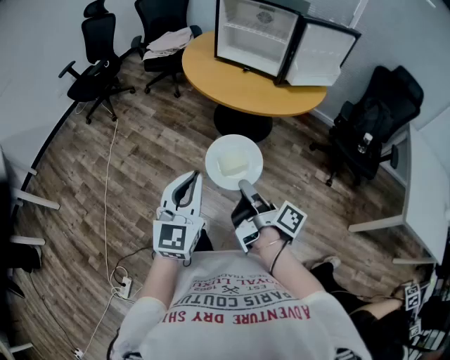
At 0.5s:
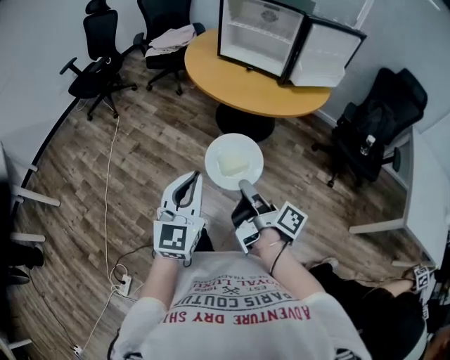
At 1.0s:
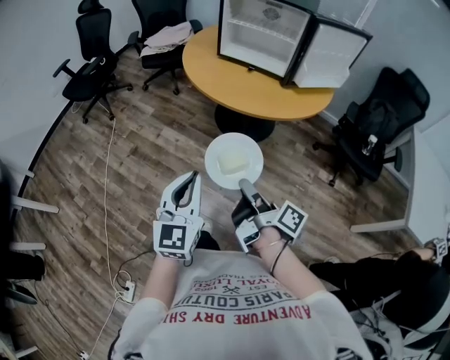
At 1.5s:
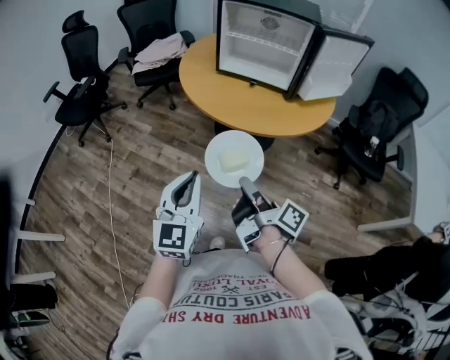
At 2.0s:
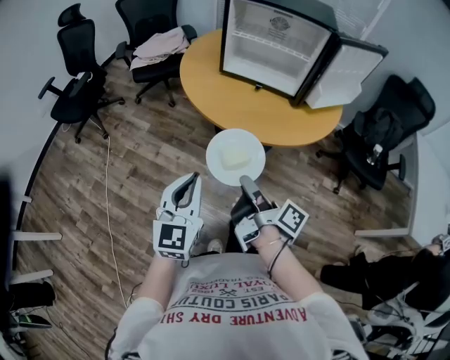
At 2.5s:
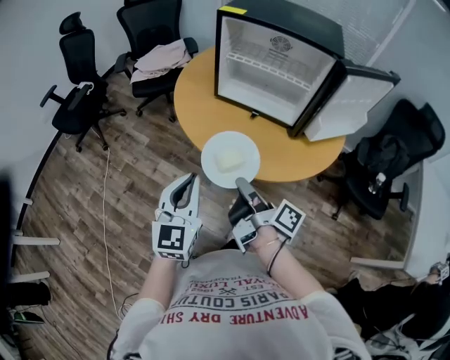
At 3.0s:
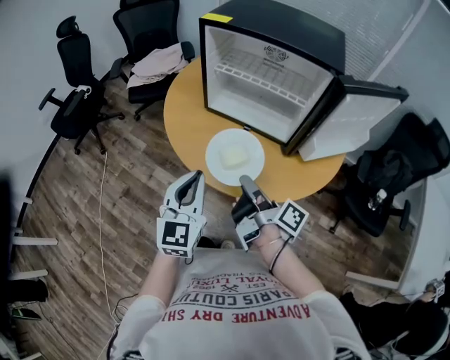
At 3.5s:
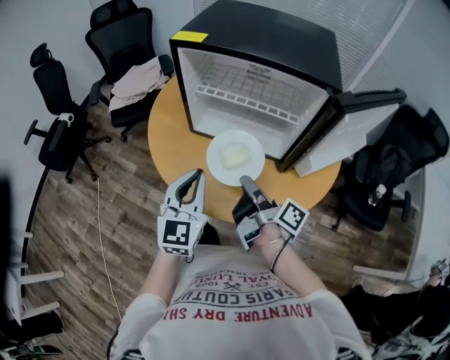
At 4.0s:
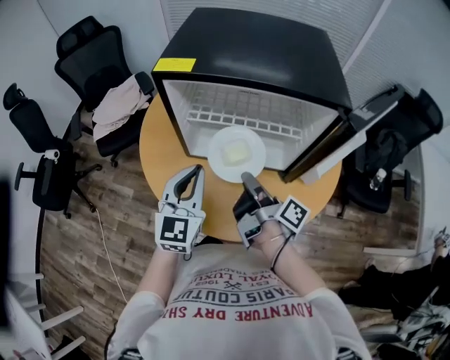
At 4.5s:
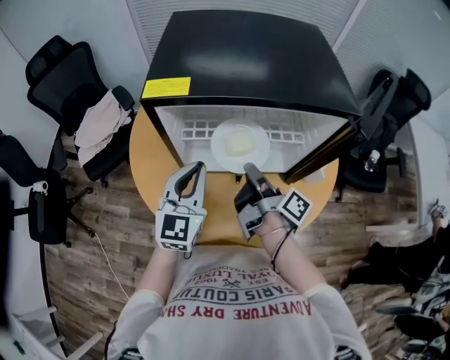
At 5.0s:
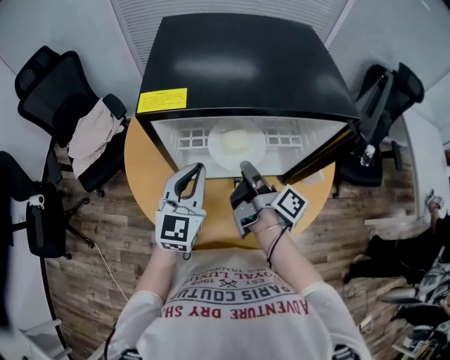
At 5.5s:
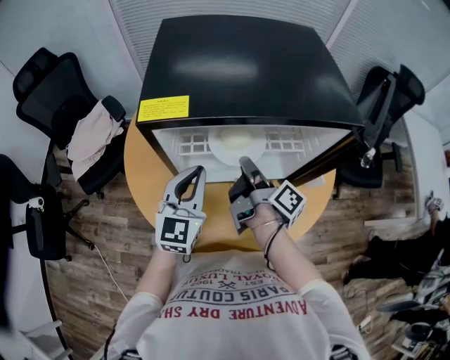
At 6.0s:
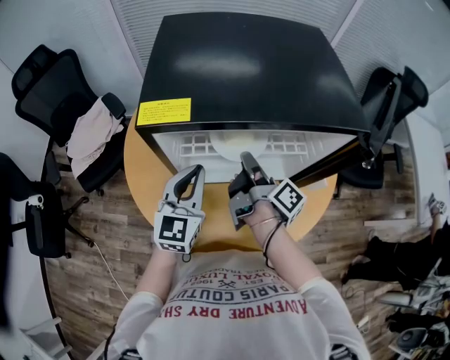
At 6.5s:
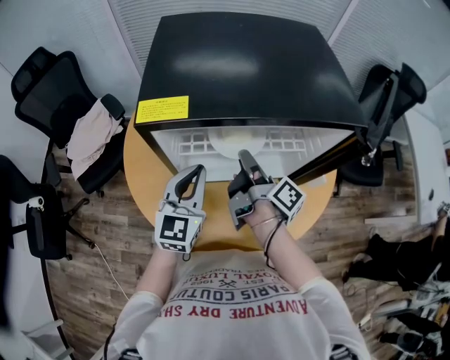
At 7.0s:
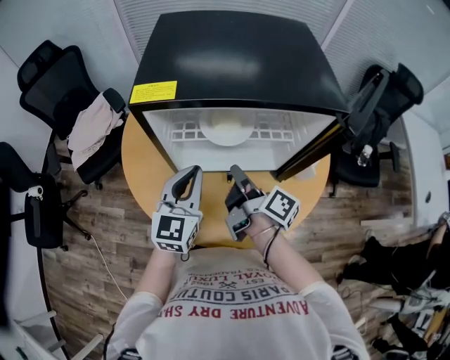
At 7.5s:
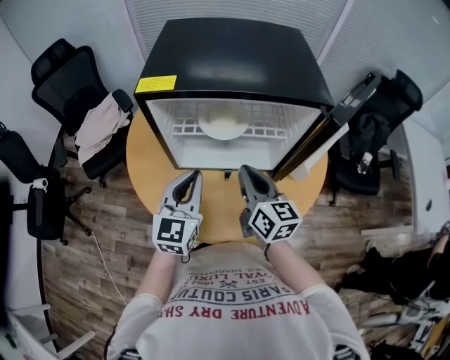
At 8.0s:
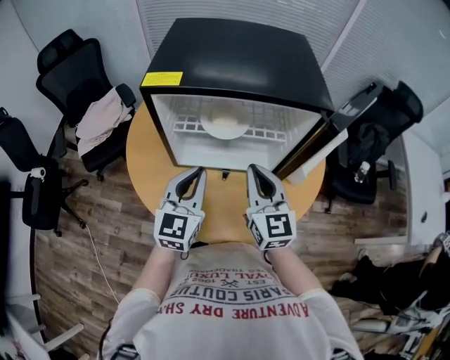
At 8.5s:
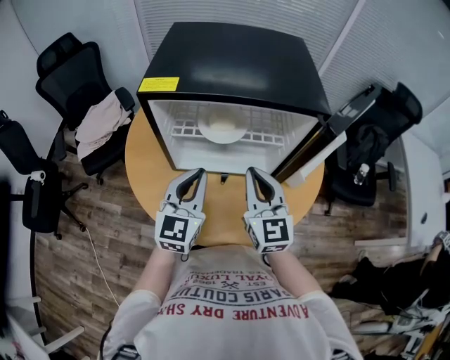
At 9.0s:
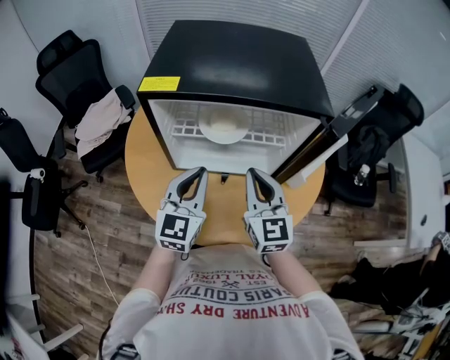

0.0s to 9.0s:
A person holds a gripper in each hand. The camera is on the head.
0.0s to 2.0s: The left gripper changes place by approximately 25 cm.
2.0s to 4.5s: The left gripper moves roughly 50 cm, and swivels some 20 degrees.
7.0s to 9.0s: The left gripper ends up about 5 cm from where it was.

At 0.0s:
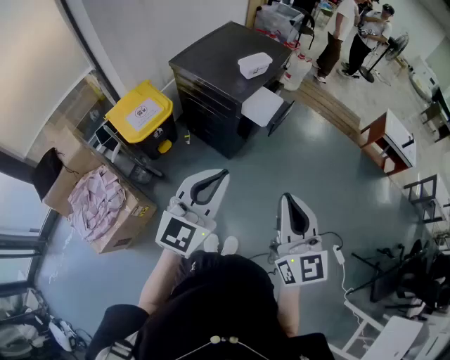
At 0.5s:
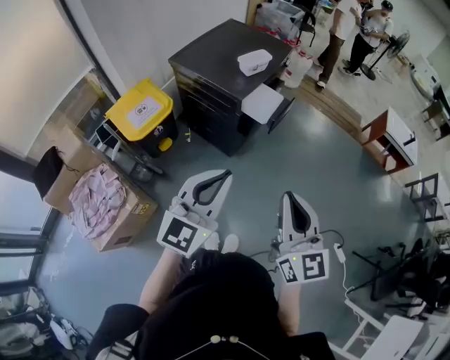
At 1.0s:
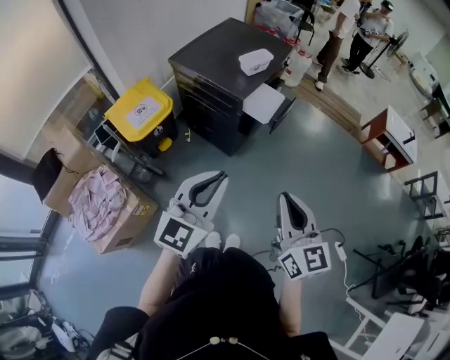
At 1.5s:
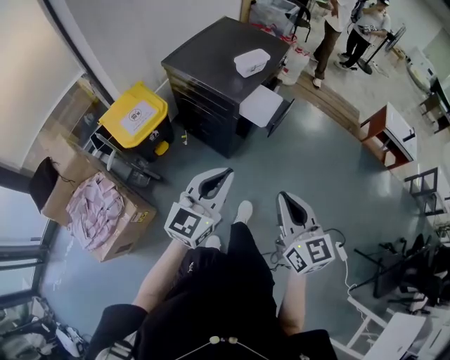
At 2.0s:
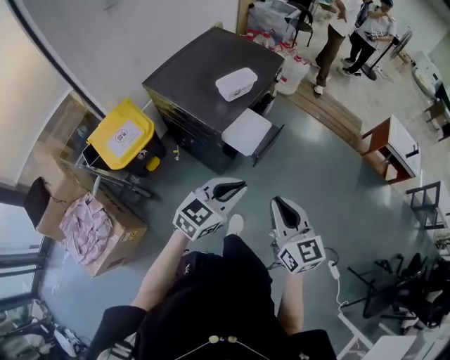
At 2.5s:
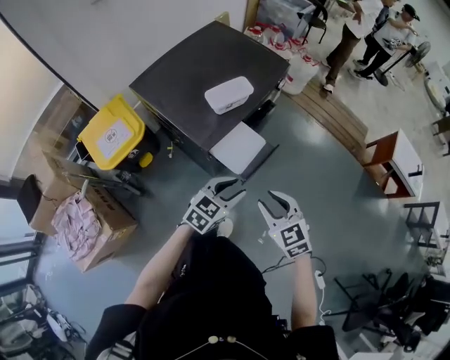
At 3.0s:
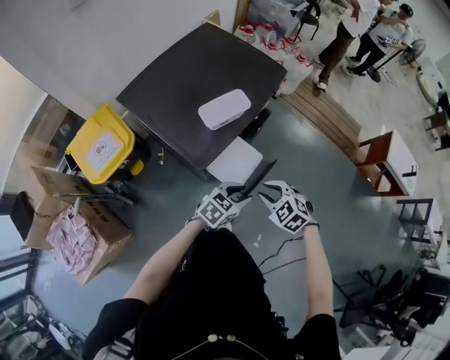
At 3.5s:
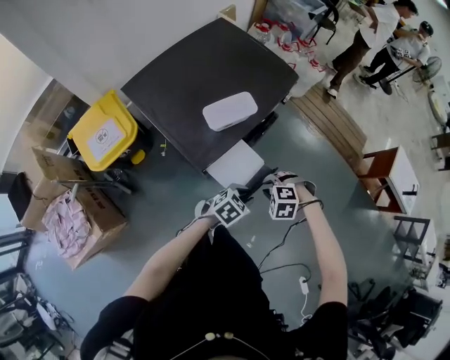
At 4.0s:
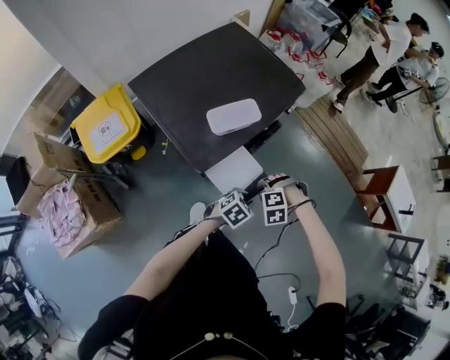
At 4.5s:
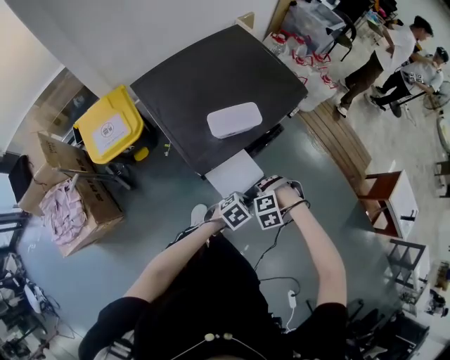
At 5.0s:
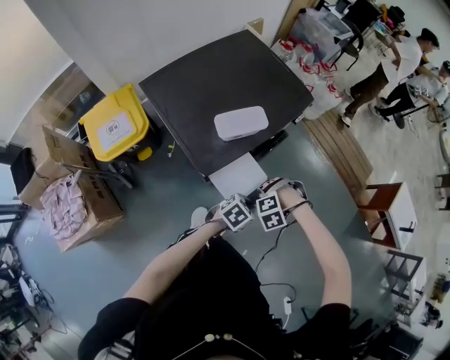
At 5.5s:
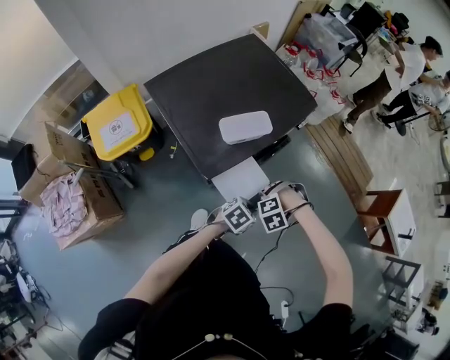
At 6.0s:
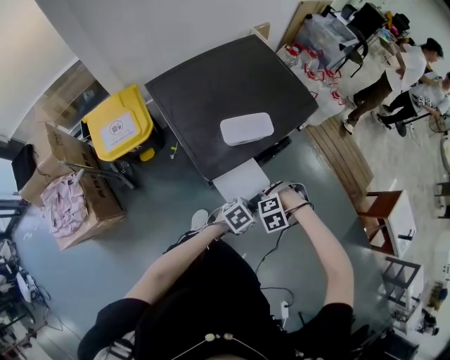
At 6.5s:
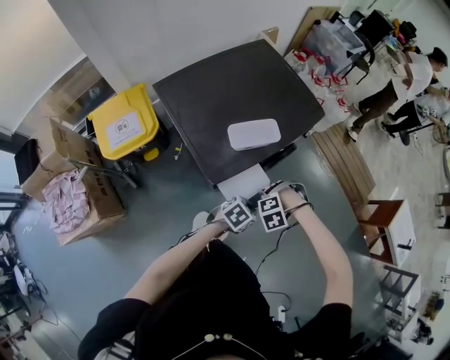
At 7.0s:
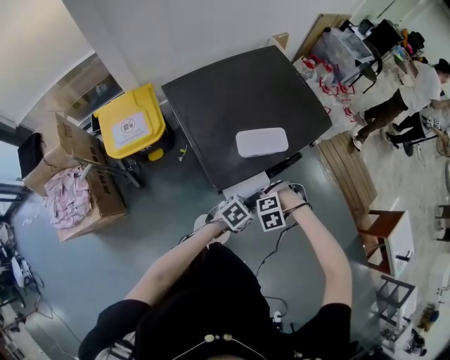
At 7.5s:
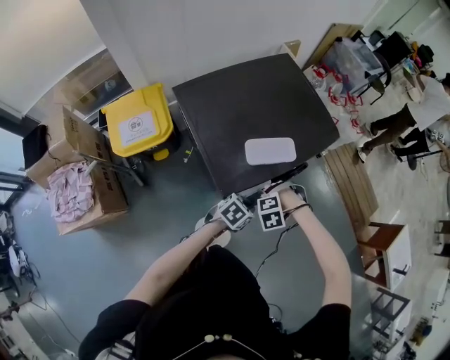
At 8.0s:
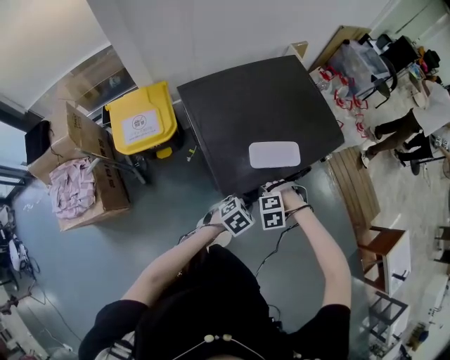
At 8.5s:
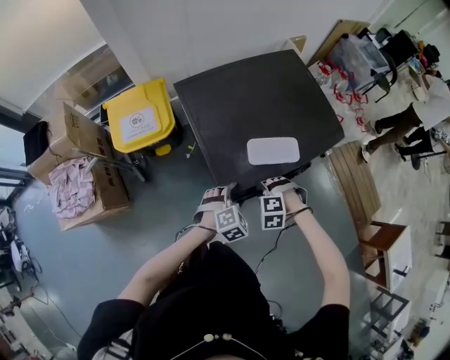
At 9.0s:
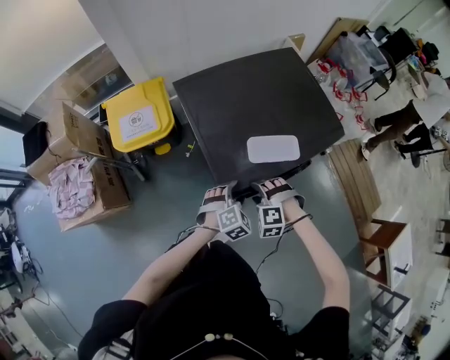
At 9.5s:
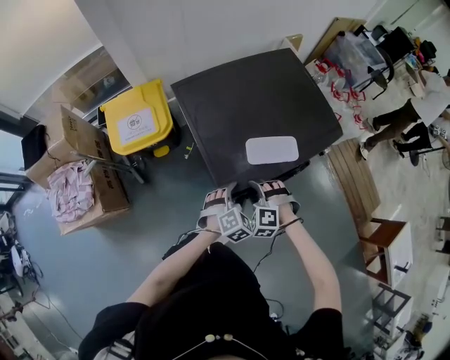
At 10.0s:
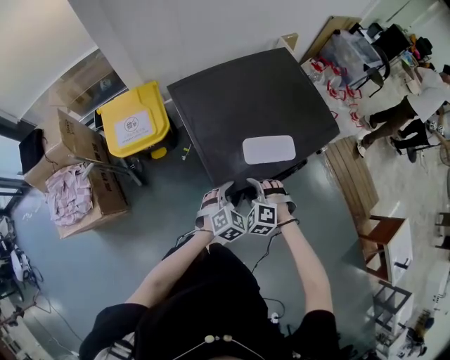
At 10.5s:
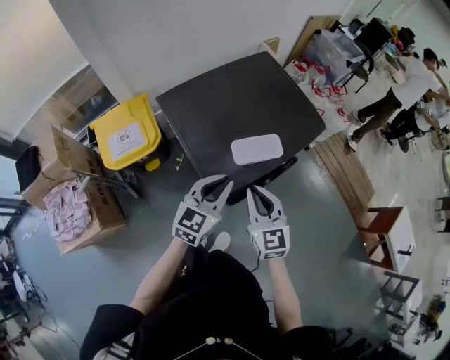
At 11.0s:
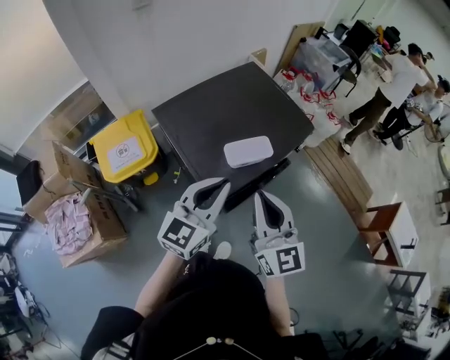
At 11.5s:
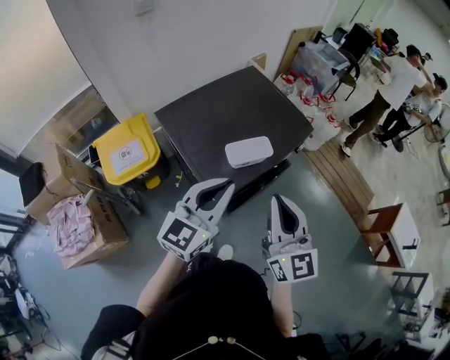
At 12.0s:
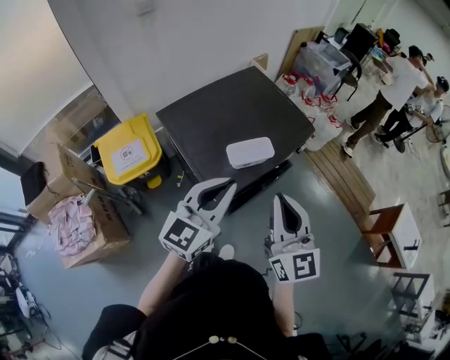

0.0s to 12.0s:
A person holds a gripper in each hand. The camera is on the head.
0.0s to 2.0s: The left gripper travels forward, downward and to the right by approximately 25 cm, and rotates approximately 30 degrees; the right gripper shifts about 25 cm forward and downward.
2.0s to 4.0s: The left gripper goes some 25 cm downward, and tilts its fingers some 40 degrees downward. The right gripper ends up approximately 35 cm from where it was, and points its fingers about 70 degrees further downward.
4.0s to 6.0s: The right gripper swivels roughly 20 degrees.
6.0s to 8.0s: The left gripper ends up about 15 cm from where it was, while the right gripper shifts by about 15 cm.
8.0s to 10.0s: The right gripper ends up roughly 5 cm from where it was, angles its fingers upward, by some 30 degrees, and opens up; the left gripper ends up roughly 5 cm from where it was, turns by some 30 degrees, and opens its fingers.
10.0s to 12.0s: The two grippers go some 30 cm upward. The right gripper angles its fingers upward, by some 60 degrees, and closes up, while the left gripper tips its fingers upward by roughly 40 degrees, and closes its fingers.

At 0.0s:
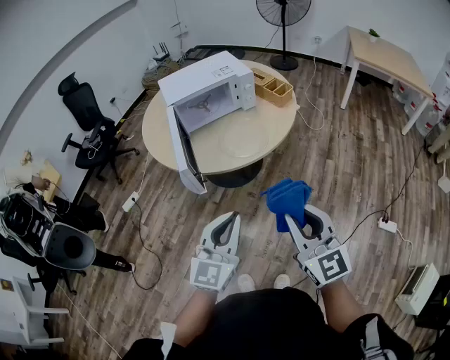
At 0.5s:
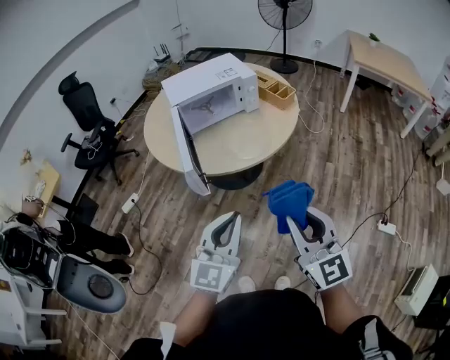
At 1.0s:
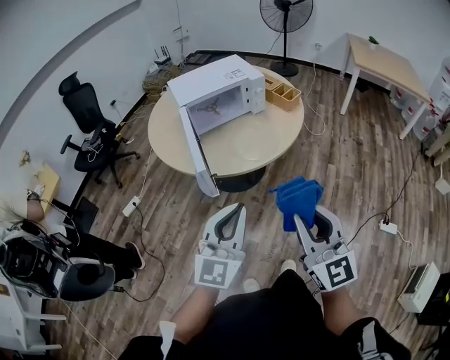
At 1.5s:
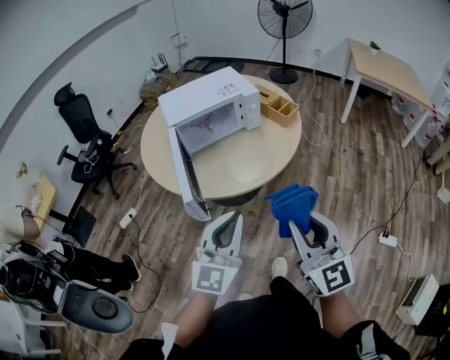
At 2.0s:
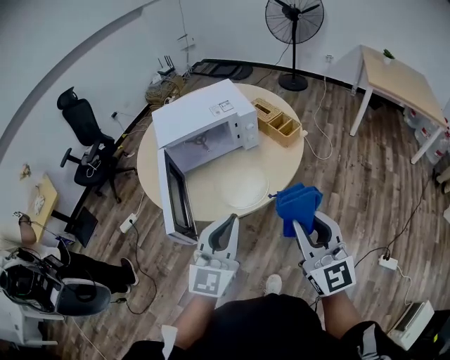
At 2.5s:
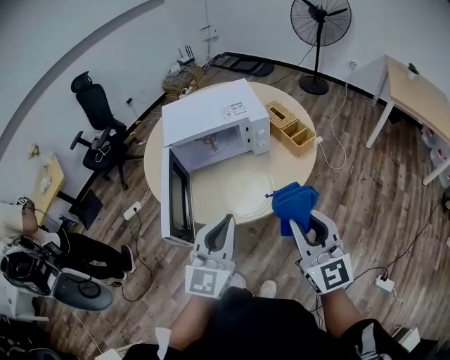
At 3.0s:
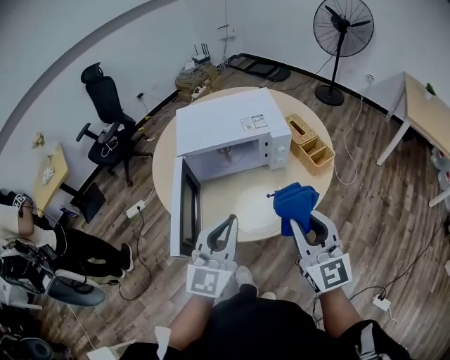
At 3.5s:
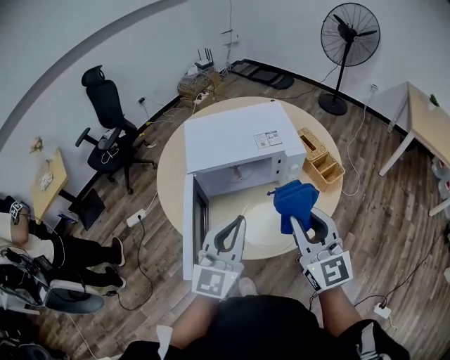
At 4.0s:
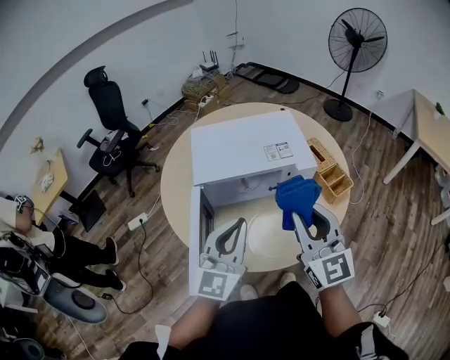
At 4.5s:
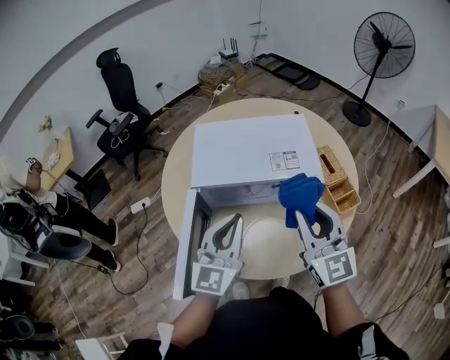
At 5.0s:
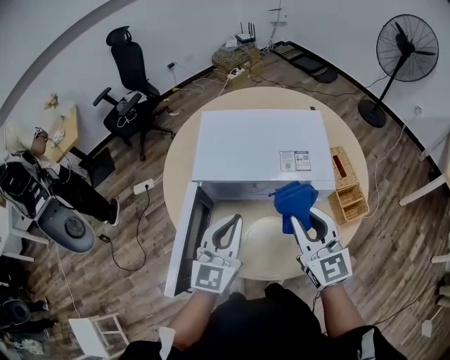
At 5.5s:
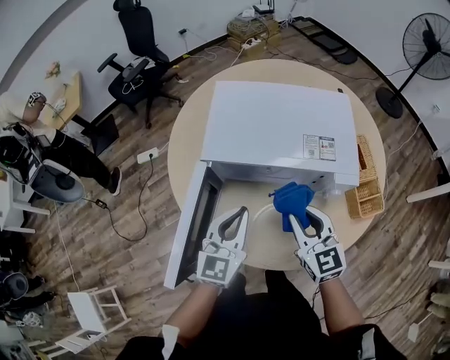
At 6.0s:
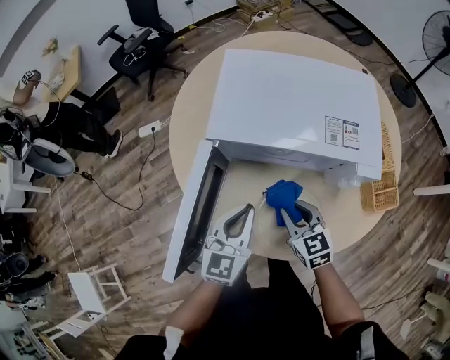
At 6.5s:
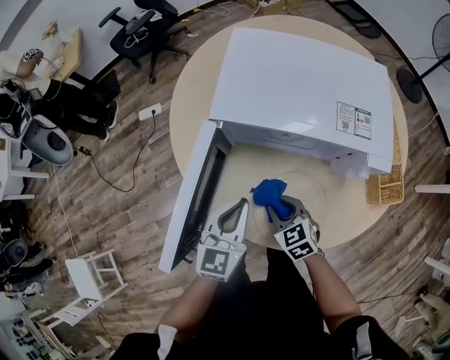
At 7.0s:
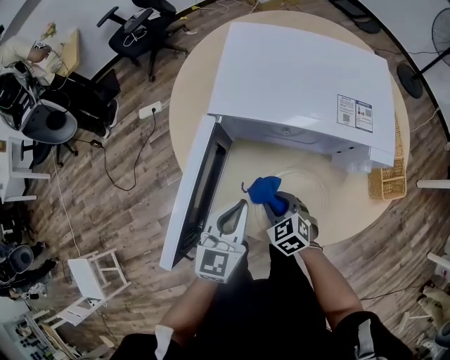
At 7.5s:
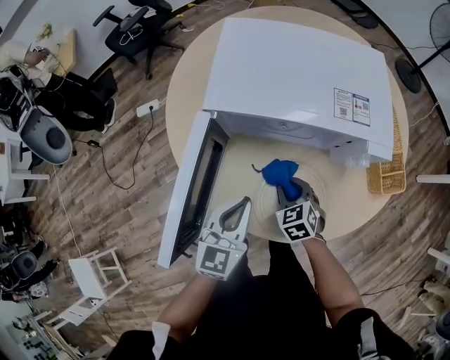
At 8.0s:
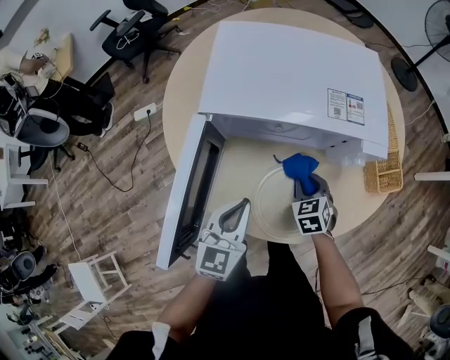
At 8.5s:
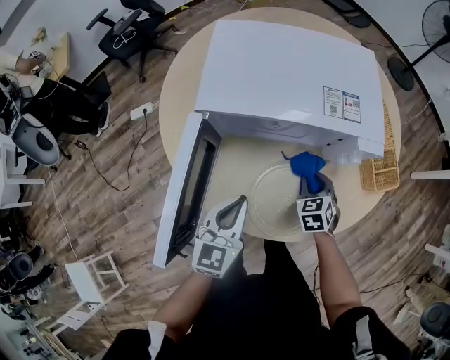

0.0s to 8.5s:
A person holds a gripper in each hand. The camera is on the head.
0.0s to 2.0s: The two grippers go approximately 20 cm forward.
2.0s to 4.0s: Both grippers travel together forward, roughly 25 cm.
4.0s to 6.5s: The right gripper travels downward by approximately 35 cm, and tilts its fingers about 50 degrees downward. Meanwhile the left gripper goes about 20 cm downward, and swivels approximately 30 degrees.
6.5s to 8.5s: The right gripper travels to the right by roughly 15 cm, and changes its angle by approximately 30 degrees.
